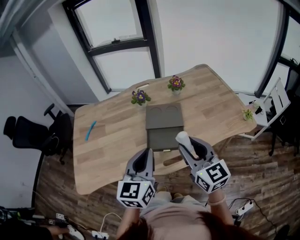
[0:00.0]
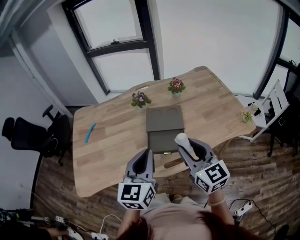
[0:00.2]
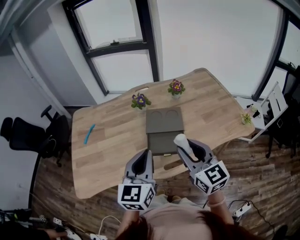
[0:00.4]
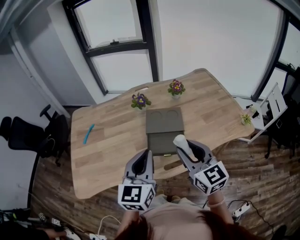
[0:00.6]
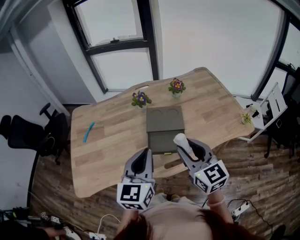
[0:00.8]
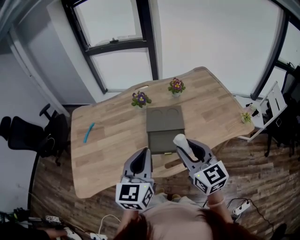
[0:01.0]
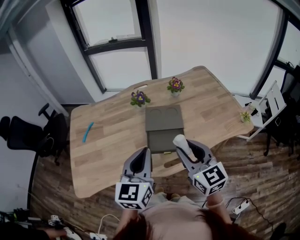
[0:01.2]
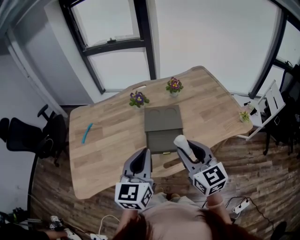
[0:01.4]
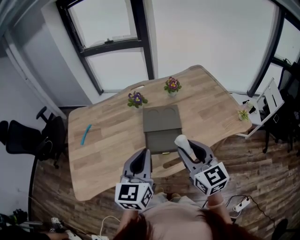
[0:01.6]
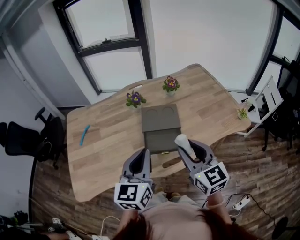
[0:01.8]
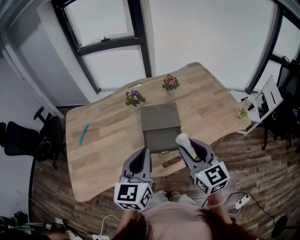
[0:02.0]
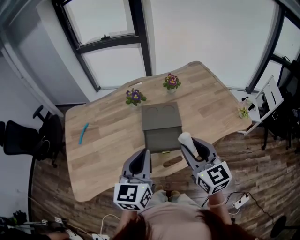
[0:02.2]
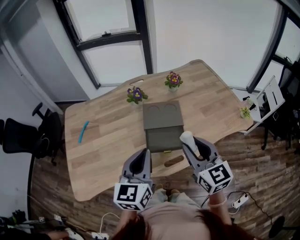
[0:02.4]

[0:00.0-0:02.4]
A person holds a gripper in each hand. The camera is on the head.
0:00.0 to 0:02.4: The grippers stay close to where they were, moving slightly.

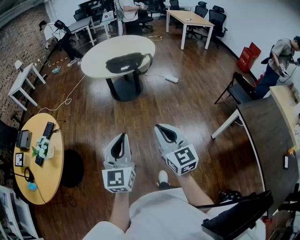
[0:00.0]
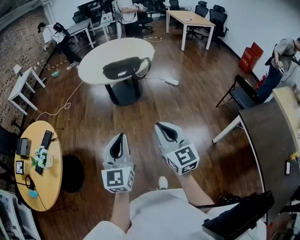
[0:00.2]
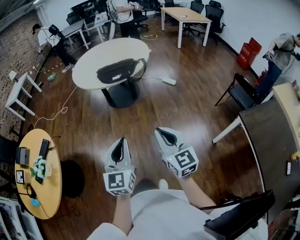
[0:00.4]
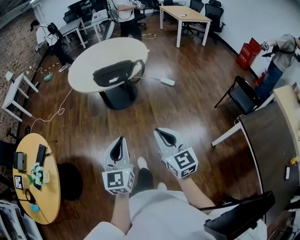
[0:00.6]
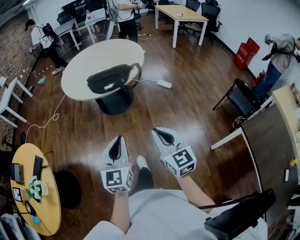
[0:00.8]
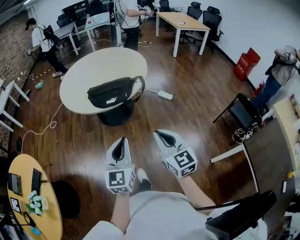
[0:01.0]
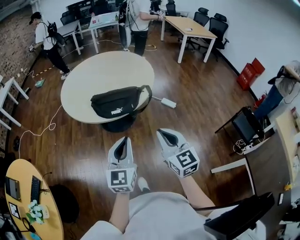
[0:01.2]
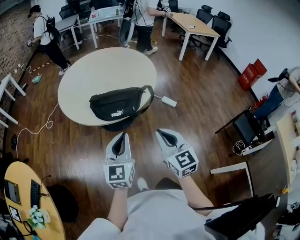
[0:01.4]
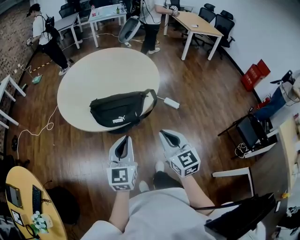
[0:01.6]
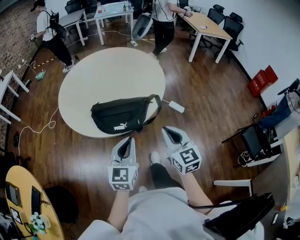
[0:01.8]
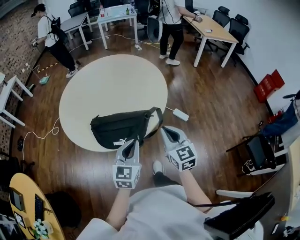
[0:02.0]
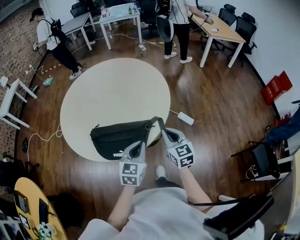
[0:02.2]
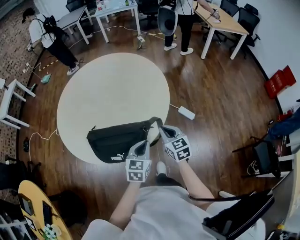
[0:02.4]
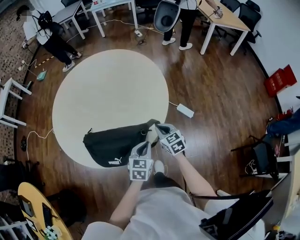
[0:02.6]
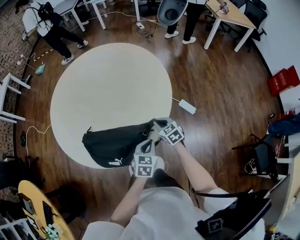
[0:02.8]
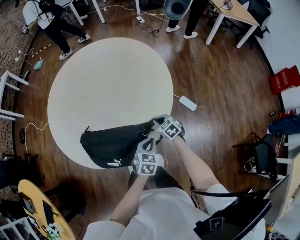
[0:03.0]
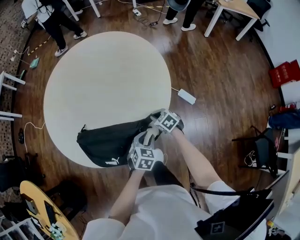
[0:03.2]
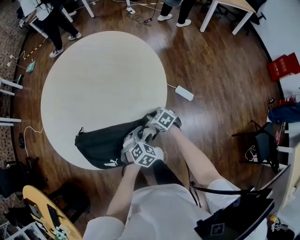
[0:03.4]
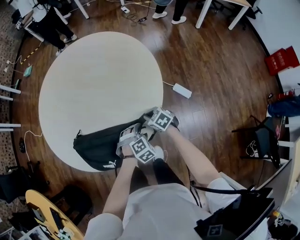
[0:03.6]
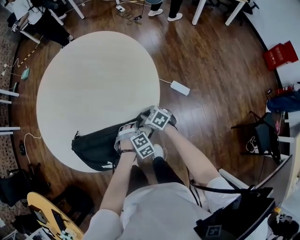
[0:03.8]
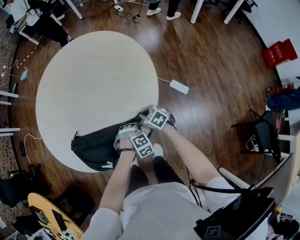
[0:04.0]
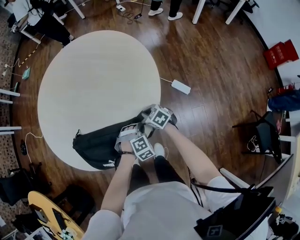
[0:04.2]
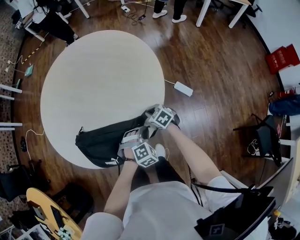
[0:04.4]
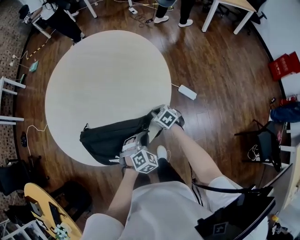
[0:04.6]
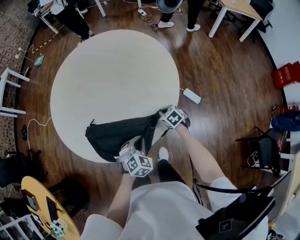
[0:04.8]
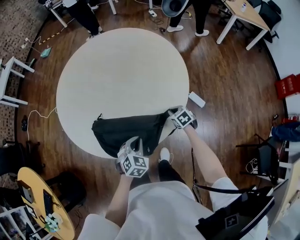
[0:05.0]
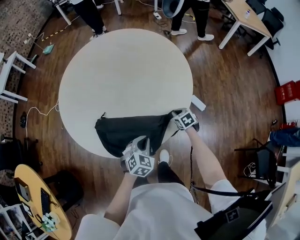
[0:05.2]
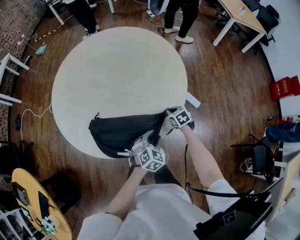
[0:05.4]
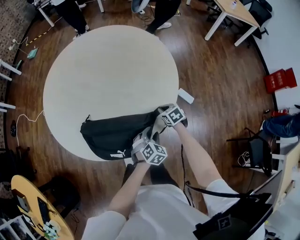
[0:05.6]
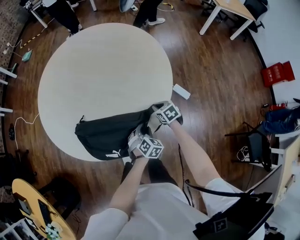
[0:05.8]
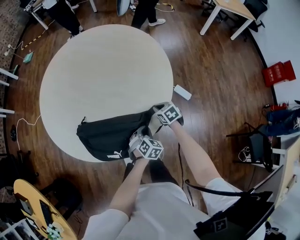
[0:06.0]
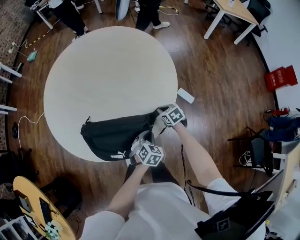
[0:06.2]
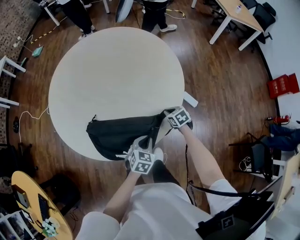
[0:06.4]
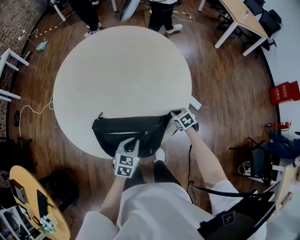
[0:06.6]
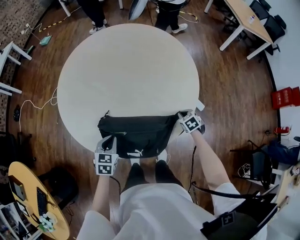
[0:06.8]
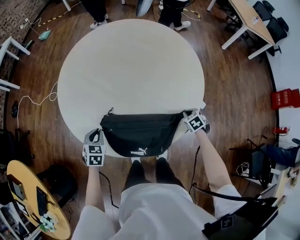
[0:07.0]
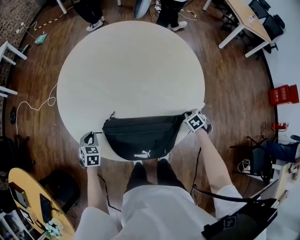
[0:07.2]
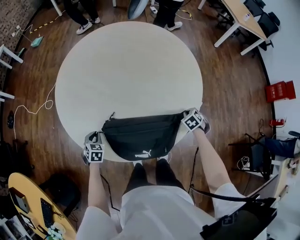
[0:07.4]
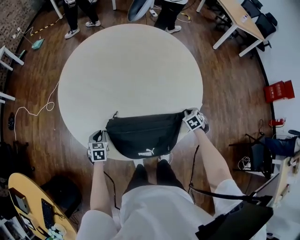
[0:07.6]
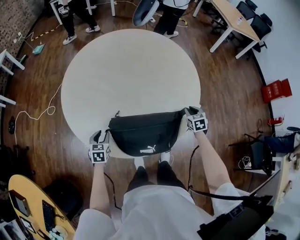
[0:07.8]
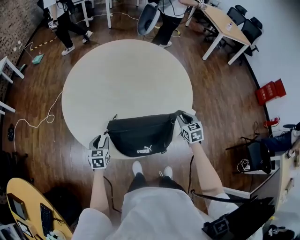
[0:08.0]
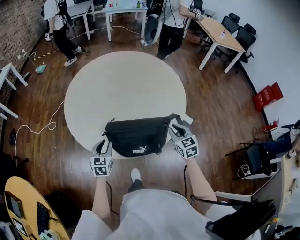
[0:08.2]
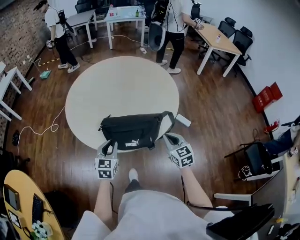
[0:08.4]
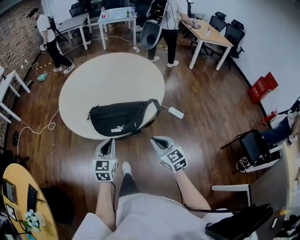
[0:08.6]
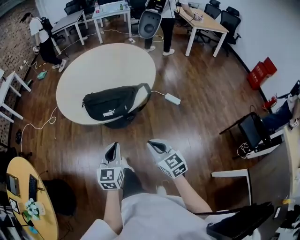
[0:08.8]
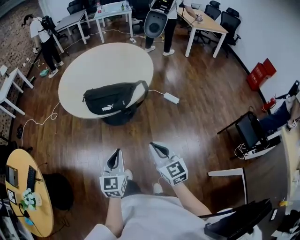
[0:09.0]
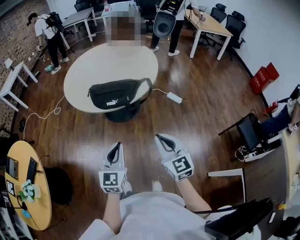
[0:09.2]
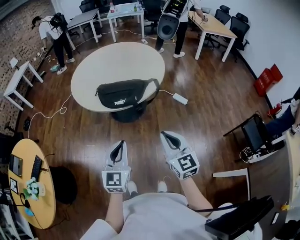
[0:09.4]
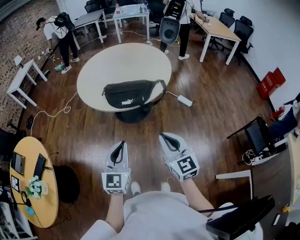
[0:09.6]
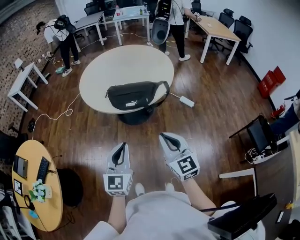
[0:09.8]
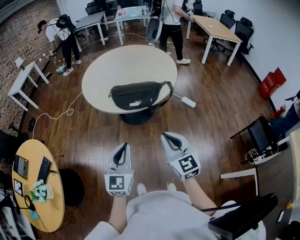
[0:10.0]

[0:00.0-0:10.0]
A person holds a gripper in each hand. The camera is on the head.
0:00.0 to 0:01.4: The pair of grippers is taken forward, approximately 60 cm.
0:01.4 to 0:02.8: Both grippers are carried forward, some 50 cm. The two grippers go about 25 cm downward. The right gripper swivels roughly 40 degrees. The left gripper angles its fingers downward, by about 40 degrees.
0:02.8 to 0:04.2: The left gripper shifts roughly 10 cm downward, twists some 60 degrees clockwise, seen from behind, and opens, then closes once more; the right gripper shifts some 5 cm downward.
0:04.2 to 0:05.8: The left gripper moves about 15 cm to the left and comes back, rotates around the line of its fingers by some 40 degrees, counterclockwise from behind, and opens up.
0:05.8 to 0:07.2: The left gripper ends up roughly 50 cm from where it was, rotates roughly 20 degrees, and closes up. The right gripper swivels approximately 30 degrees.
0:07.2 to 0:08.6: The right gripper ends up roughly 50 cm from where it was, and tilts its fingers some 60 degrees upward; the left gripper ends up some 40 cm from where it was, points its fingers about 30 degrees further upward, and opens, then closes again.
0:08.6 to 0:10.0: Both grippers travel together backward and upward, roughly 25 cm.

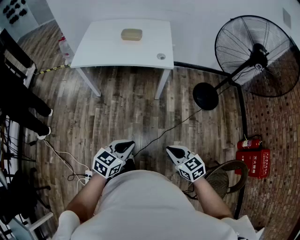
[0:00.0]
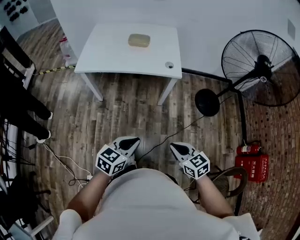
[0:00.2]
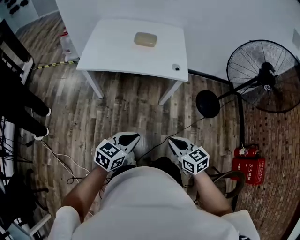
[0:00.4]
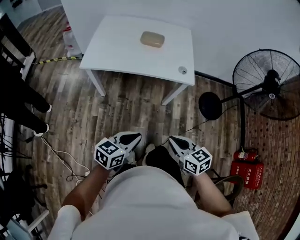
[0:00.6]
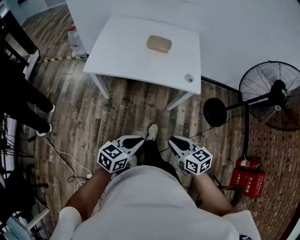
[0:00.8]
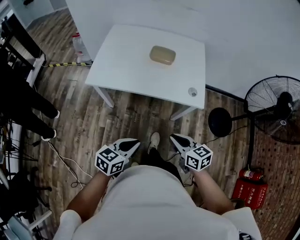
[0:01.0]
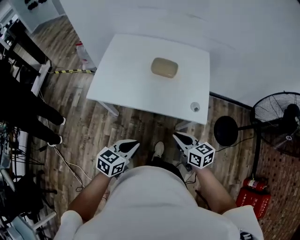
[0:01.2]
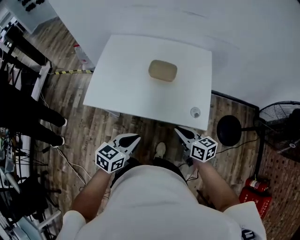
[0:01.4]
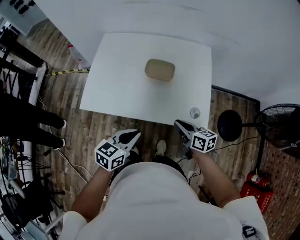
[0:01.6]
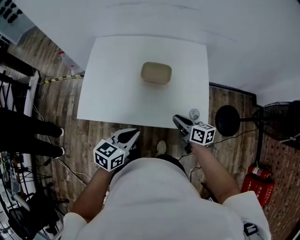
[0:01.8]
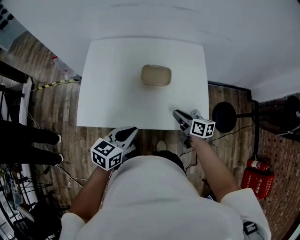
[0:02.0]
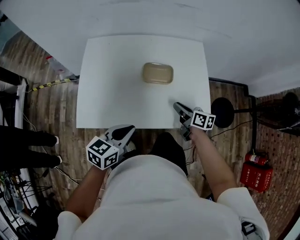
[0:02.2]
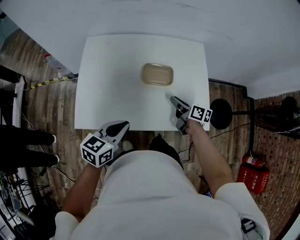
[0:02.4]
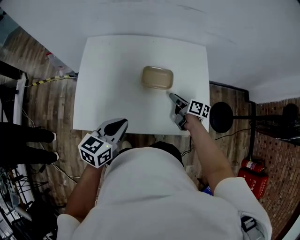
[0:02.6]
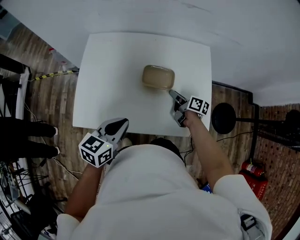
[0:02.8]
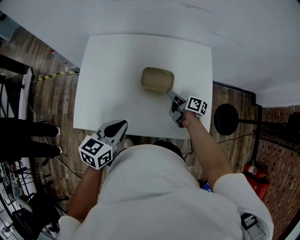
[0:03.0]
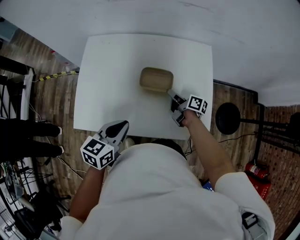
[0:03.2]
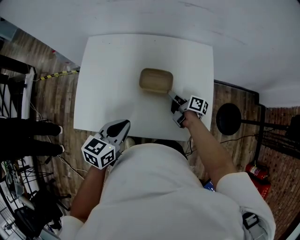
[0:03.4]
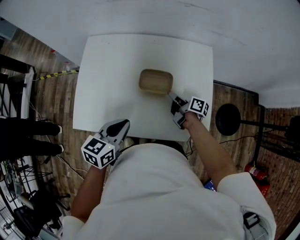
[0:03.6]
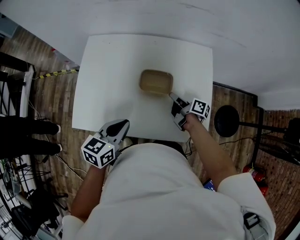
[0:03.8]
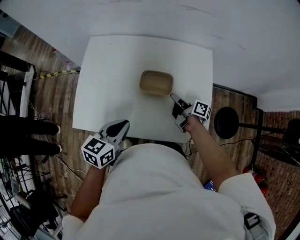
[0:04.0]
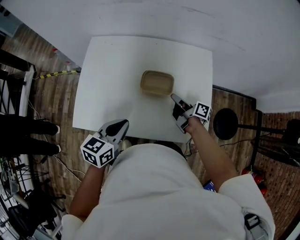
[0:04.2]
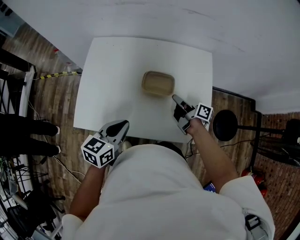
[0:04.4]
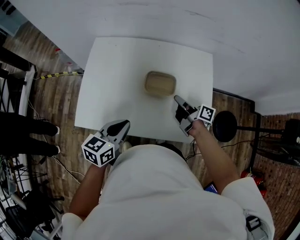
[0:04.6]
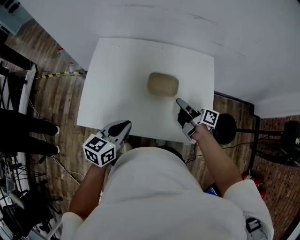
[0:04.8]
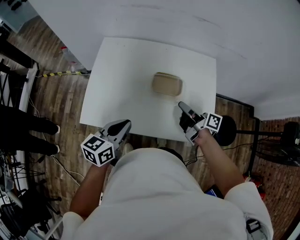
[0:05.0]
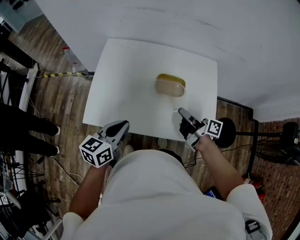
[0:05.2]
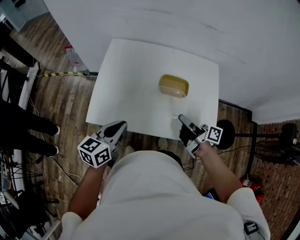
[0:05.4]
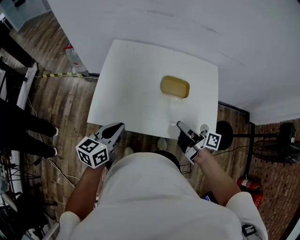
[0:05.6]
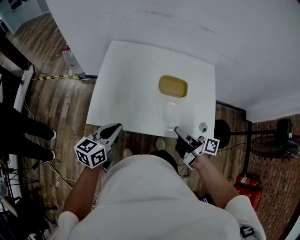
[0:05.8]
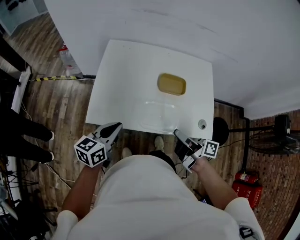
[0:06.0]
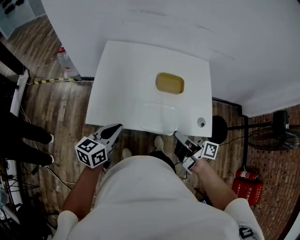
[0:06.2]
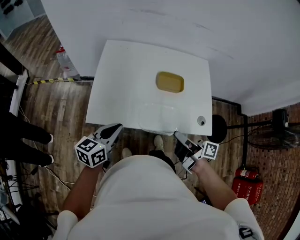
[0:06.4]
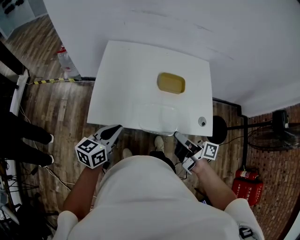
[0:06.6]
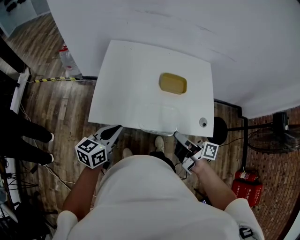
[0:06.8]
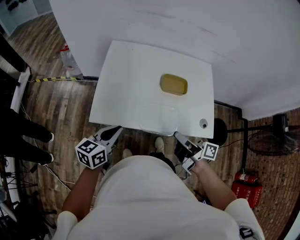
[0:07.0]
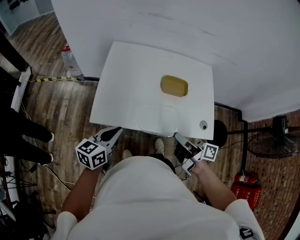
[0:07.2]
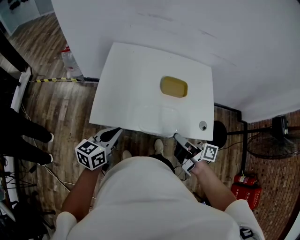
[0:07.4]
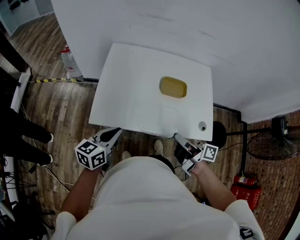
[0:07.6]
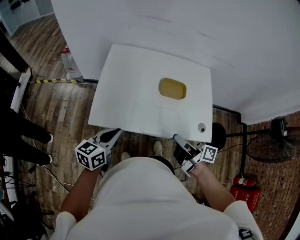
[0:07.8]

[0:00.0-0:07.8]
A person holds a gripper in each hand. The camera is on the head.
0:00.0 to 0:01.6: Both grippers are carried forward, some 50 cm. The right gripper changes its angle by about 30 degrees.
0:01.6 to 0:03.2: The left gripper heads forward, covering roughly 15 cm, while the right gripper moves forward, approximately 25 cm, rotates roughly 30 degrees, and opens.
0:03.2 to 0:04.6: The right gripper heads upward, covering approximately 10 cm, and closes.
0:04.6 to 0:06.2: The left gripper shifts some 15 cm to the left and backward. Meanwhile the right gripper shifts approximately 25 cm backward, to the left and upward.
0:06.2 to 0:07.8: There are only small adjustments of the grippers.

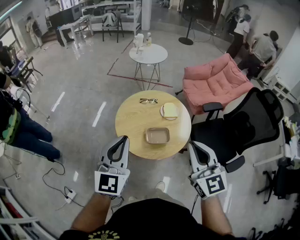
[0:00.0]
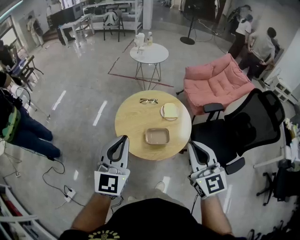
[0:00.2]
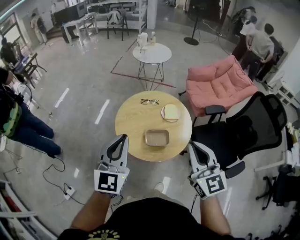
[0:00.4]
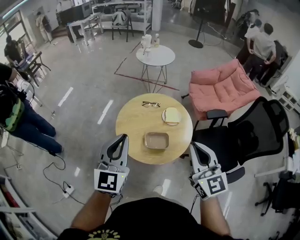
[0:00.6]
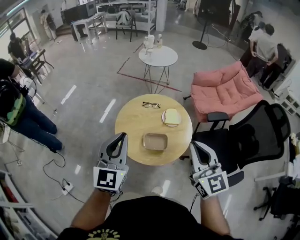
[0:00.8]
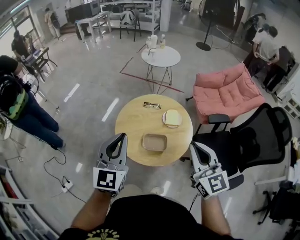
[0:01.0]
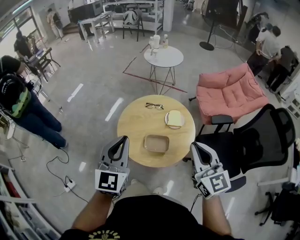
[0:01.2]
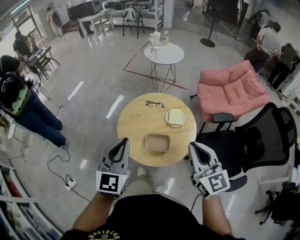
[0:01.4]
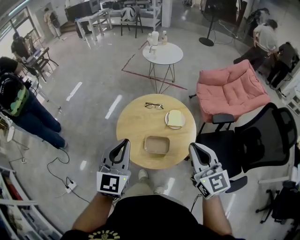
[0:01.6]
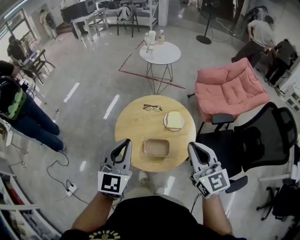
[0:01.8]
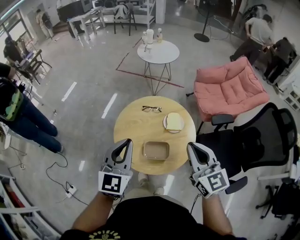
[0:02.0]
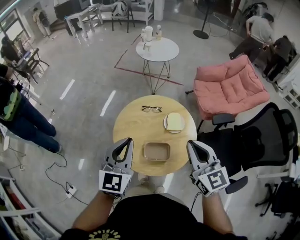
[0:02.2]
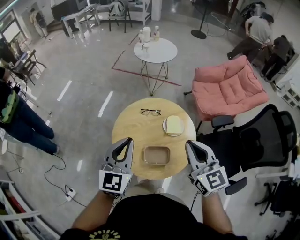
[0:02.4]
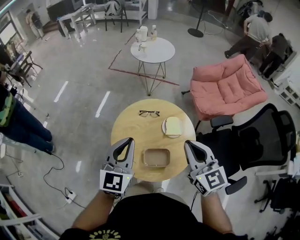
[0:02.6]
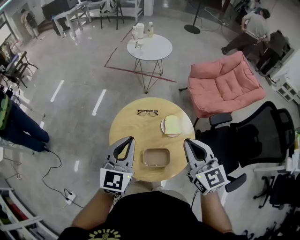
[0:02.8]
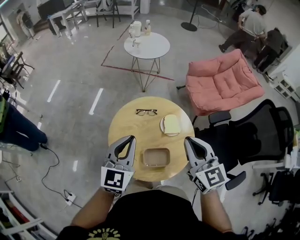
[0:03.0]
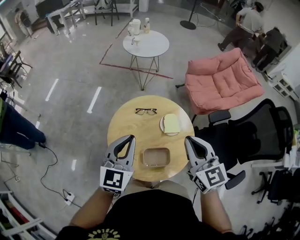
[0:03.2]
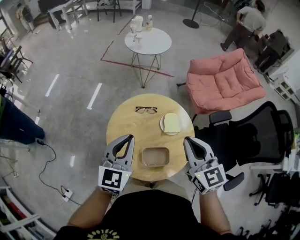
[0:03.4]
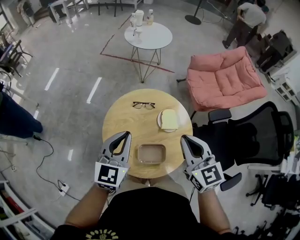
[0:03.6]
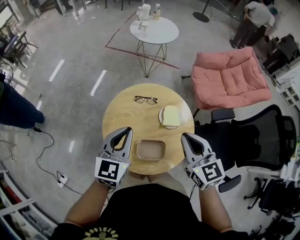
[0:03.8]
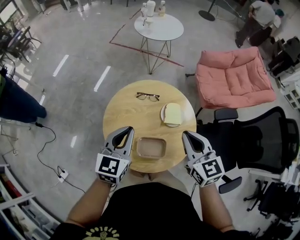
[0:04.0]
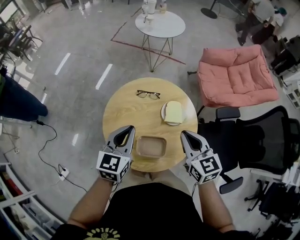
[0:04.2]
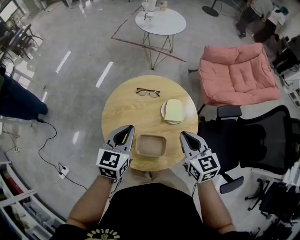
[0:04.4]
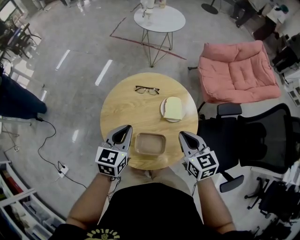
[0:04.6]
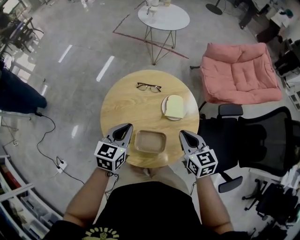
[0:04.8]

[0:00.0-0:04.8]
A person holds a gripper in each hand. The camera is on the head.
0:00.0 to 0:01.6: The grippers both shift forward and to the right by about 10 cm.
0:01.6 to 0:03.2: Both grippers move forward, approximately 15 cm.
0:03.2 to 0:04.8: Both grippers move downward, roughly 20 cm. The left gripper changes its angle by about 30 degrees, while the right gripper turns by roughly 20 degrees.
